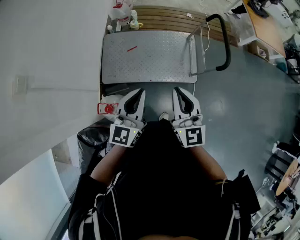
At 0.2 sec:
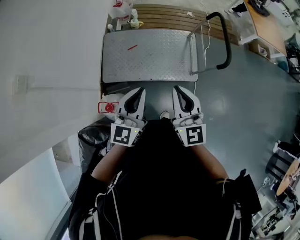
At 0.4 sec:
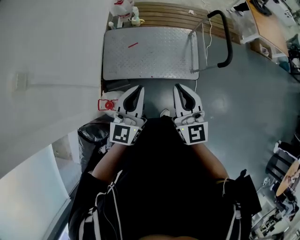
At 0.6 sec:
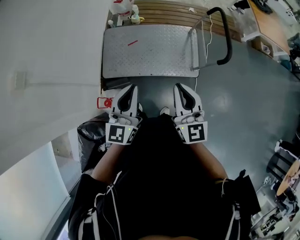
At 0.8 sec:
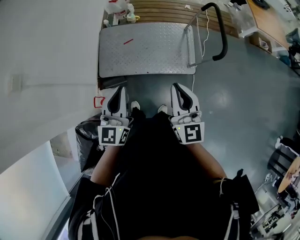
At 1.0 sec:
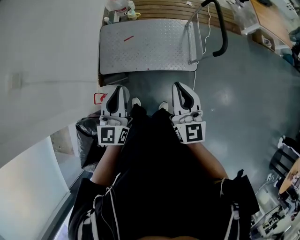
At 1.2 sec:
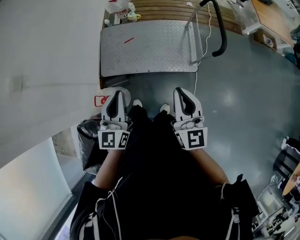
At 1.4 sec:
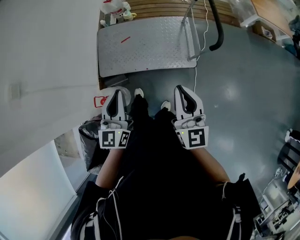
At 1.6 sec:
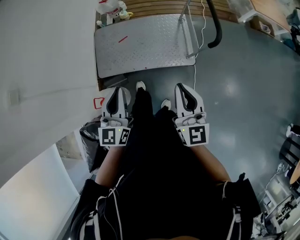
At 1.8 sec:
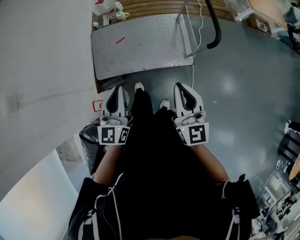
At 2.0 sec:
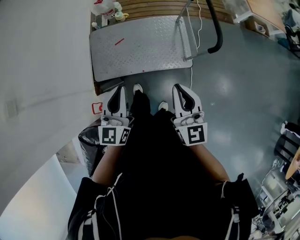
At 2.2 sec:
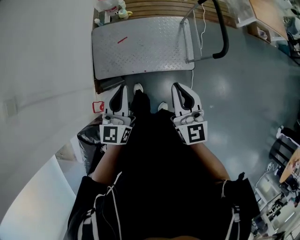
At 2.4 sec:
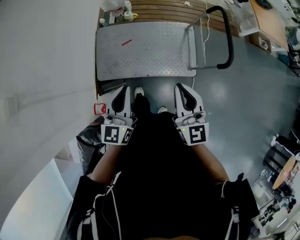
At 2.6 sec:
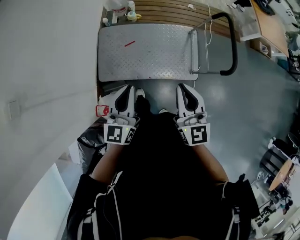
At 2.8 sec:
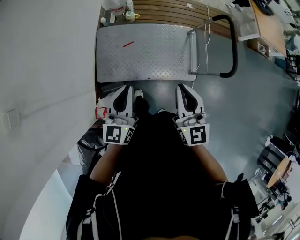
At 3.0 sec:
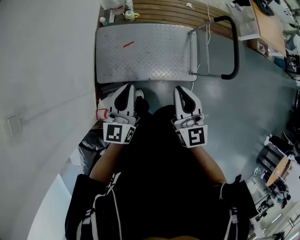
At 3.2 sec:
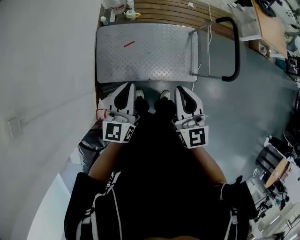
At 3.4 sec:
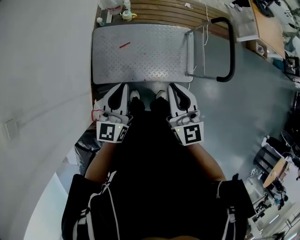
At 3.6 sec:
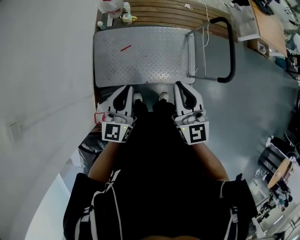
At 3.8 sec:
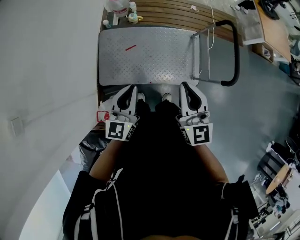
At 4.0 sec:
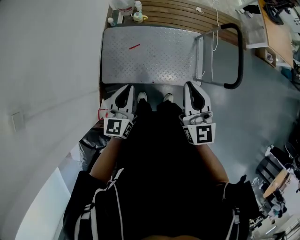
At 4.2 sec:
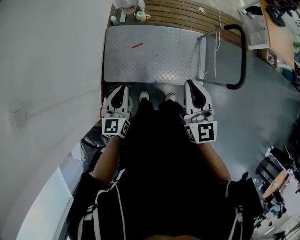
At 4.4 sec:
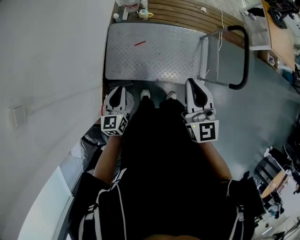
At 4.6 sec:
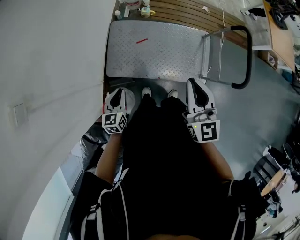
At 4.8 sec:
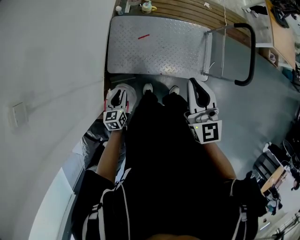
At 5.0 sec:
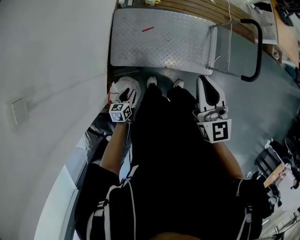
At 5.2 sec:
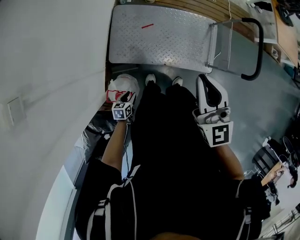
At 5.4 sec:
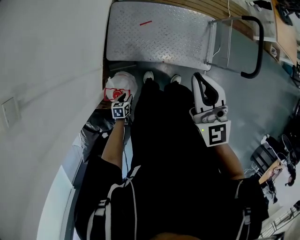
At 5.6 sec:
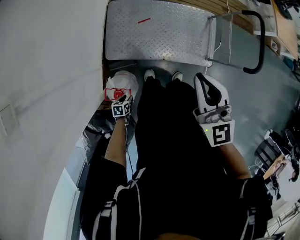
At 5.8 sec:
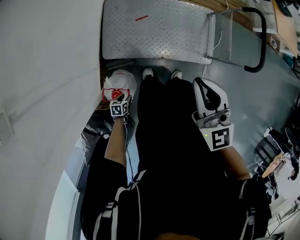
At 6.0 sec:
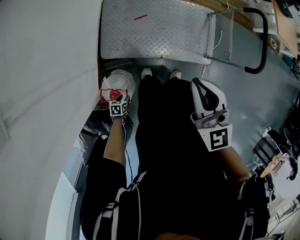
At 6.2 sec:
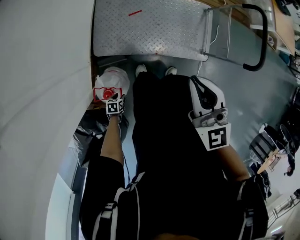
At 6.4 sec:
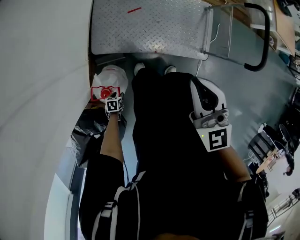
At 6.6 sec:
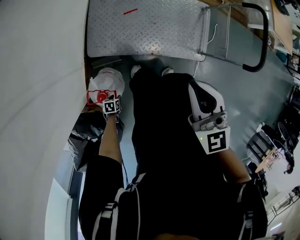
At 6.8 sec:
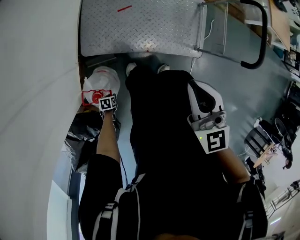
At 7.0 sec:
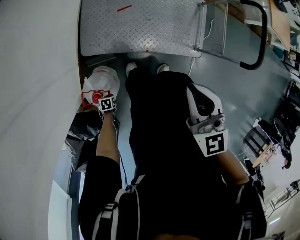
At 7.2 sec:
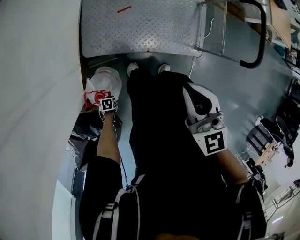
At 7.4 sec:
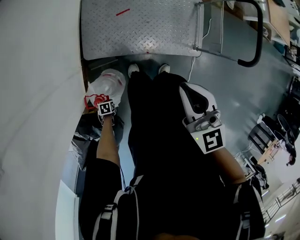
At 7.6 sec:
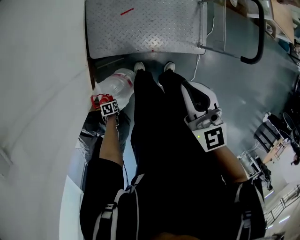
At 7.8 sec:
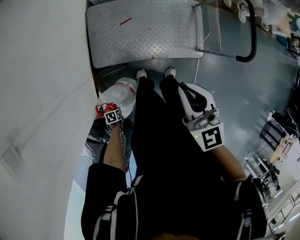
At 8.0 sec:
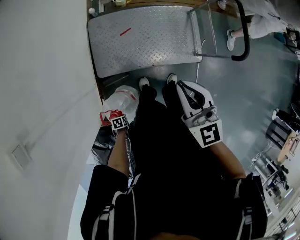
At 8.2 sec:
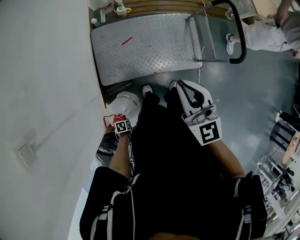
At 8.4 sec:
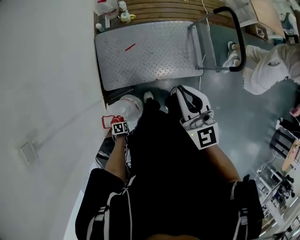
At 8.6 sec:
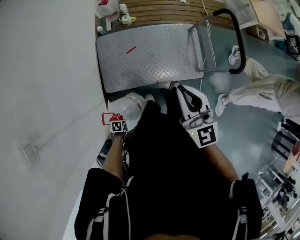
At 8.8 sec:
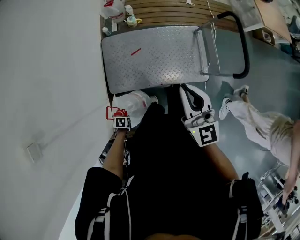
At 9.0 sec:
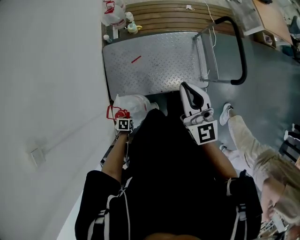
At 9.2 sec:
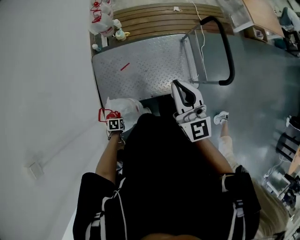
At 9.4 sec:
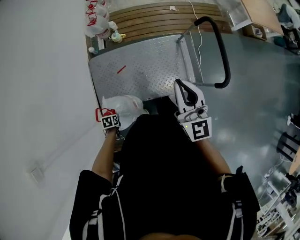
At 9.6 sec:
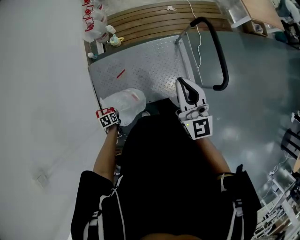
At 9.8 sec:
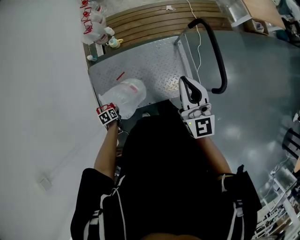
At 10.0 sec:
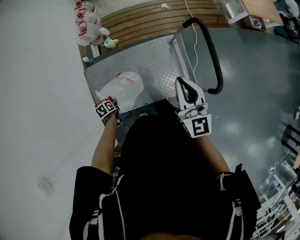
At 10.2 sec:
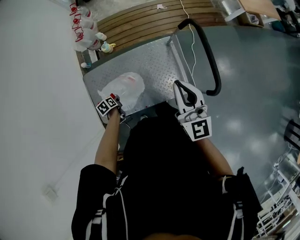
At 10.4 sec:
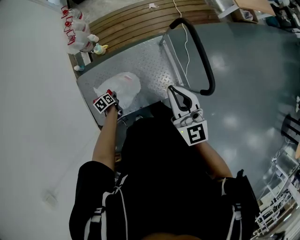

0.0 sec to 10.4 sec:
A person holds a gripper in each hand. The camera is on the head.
0.0 sec to 1.4 sec: The left gripper moves roughly 5 cm; the right gripper is displaced to the right and backward by roughly 15 cm.
1.4 sec to 3.0 sec: The grippers both shift forward and to the left by some 25 cm.
3.0 sec to 4.4 sec: The left gripper travels downward and to the left by about 15 cm; the right gripper is displaced forward by roughly 5 cm.
4.4 sec to 6.0 sec: The right gripper travels to the left and backward by approximately 10 cm. The left gripper is displaced downward and backward by some 50 cm, tips its fingers downward by some 40 degrees, and opens up.
6.0 sec to 7.4 sec: The two grippers go approximately 5 cm downward. The left gripper closes up.
7.4 sec to 9.0 sec: The right gripper shifts by some 15 cm, and rotates some 20 degrees. The left gripper moves some 25 cm.
9.0 sec to 10.4 sec: The left gripper ends up approximately 40 cm from where it was, and changes its angle by approximately 30 degrees, while the right gripper changes place by approximately 25 cm.

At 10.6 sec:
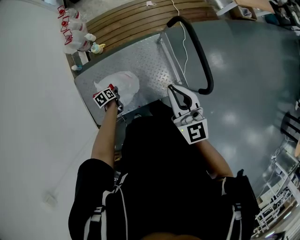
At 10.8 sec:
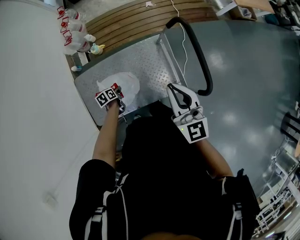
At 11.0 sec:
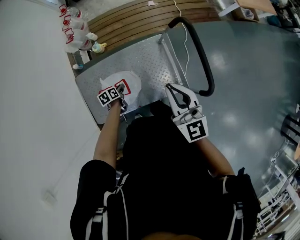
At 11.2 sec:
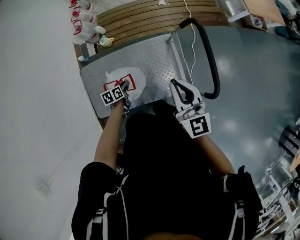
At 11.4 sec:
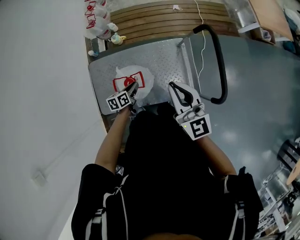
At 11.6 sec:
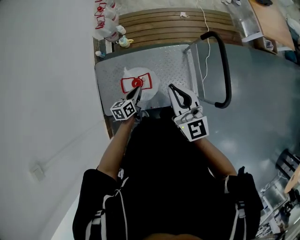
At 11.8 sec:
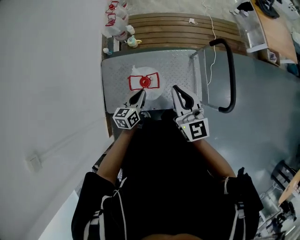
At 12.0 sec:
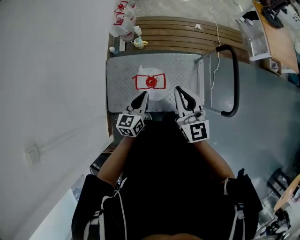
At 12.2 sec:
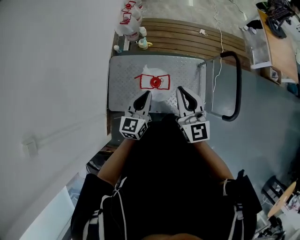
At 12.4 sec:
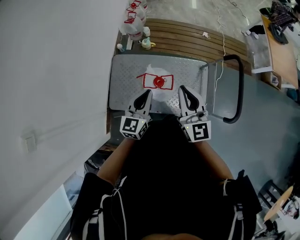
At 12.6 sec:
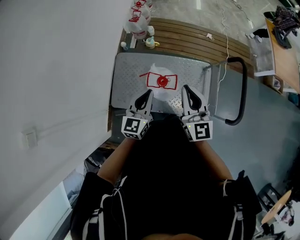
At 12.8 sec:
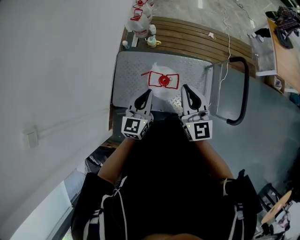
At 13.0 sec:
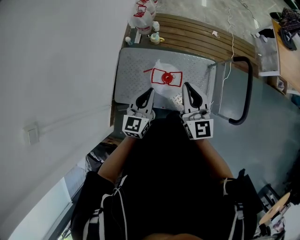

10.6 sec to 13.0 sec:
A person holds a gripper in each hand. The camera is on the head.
10.6 sec to 11.8 sec: The left gripper is displaced upward by some 25 cm, and angles its fingers upward, by some 40 degrees; the right gripper moves to the left, roughly 15 cm.
11.8 sec to 13.0 sec: The right gripper goes approximately 10 cm to the left; the left gripper travels upward and to the left by approximately 15 cm, and turns by about 30 degrees.

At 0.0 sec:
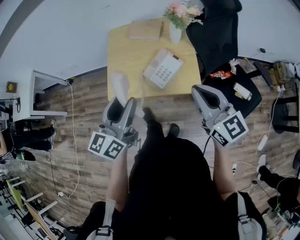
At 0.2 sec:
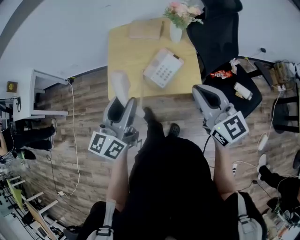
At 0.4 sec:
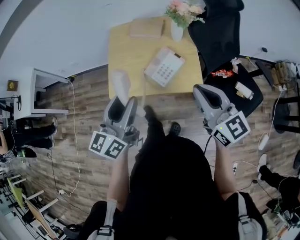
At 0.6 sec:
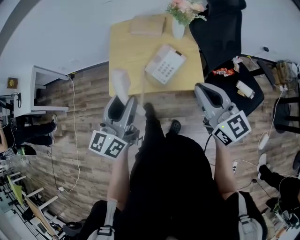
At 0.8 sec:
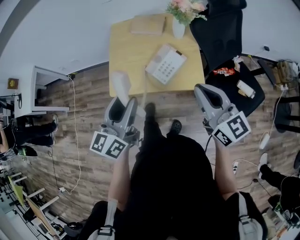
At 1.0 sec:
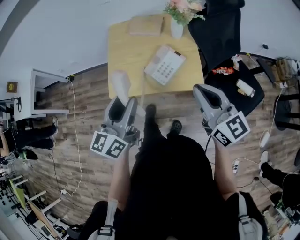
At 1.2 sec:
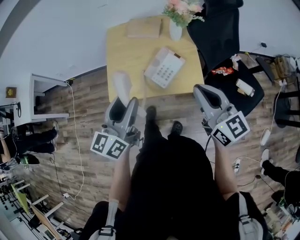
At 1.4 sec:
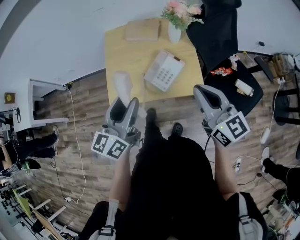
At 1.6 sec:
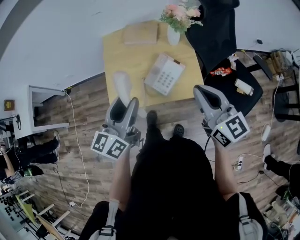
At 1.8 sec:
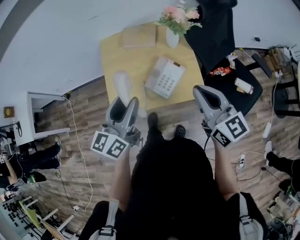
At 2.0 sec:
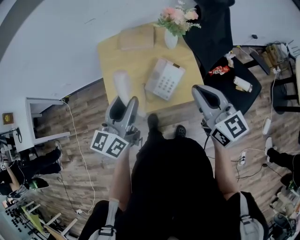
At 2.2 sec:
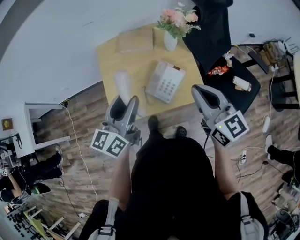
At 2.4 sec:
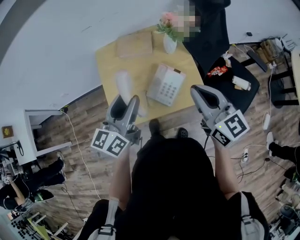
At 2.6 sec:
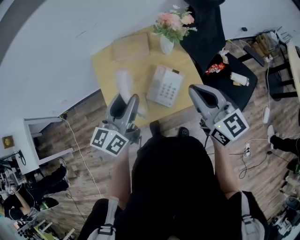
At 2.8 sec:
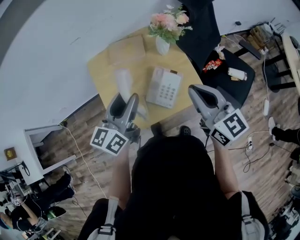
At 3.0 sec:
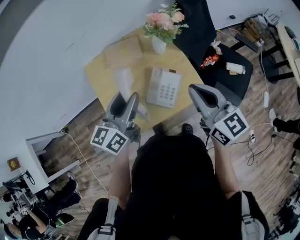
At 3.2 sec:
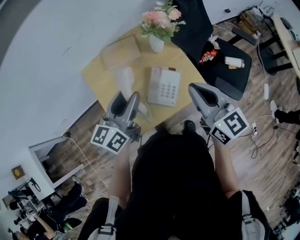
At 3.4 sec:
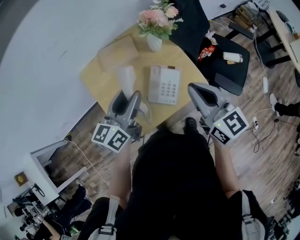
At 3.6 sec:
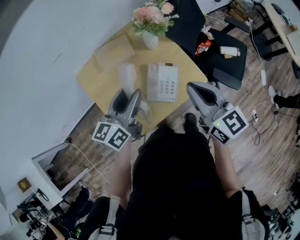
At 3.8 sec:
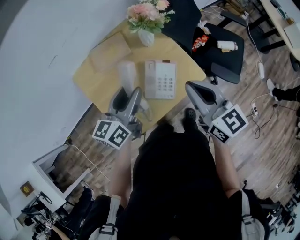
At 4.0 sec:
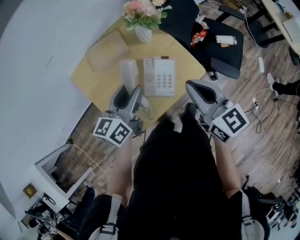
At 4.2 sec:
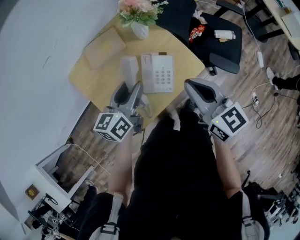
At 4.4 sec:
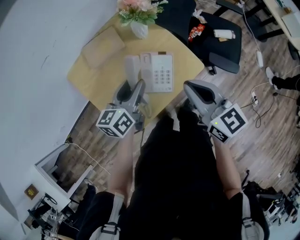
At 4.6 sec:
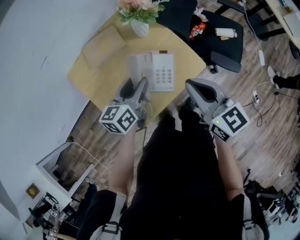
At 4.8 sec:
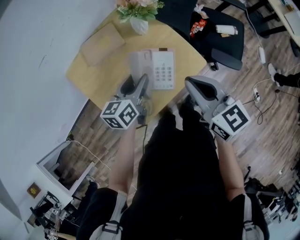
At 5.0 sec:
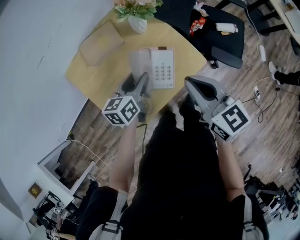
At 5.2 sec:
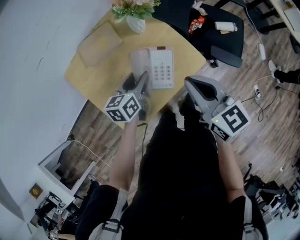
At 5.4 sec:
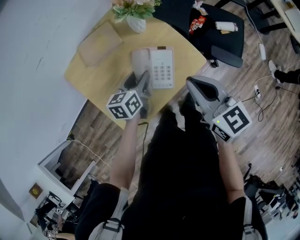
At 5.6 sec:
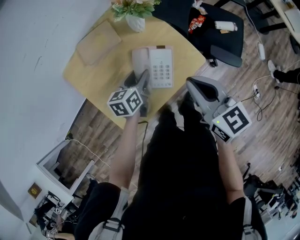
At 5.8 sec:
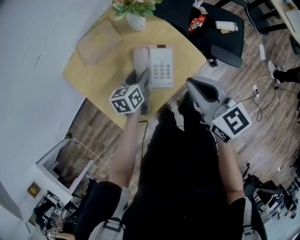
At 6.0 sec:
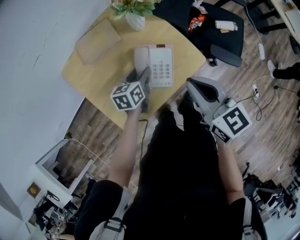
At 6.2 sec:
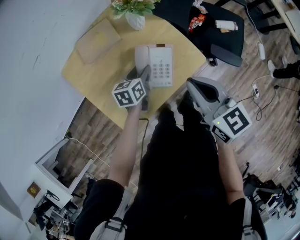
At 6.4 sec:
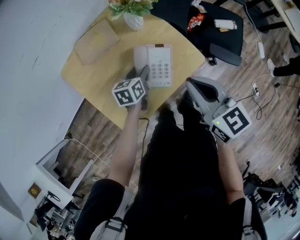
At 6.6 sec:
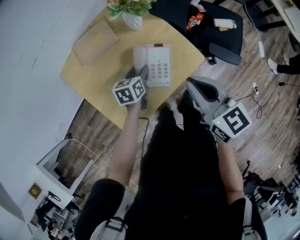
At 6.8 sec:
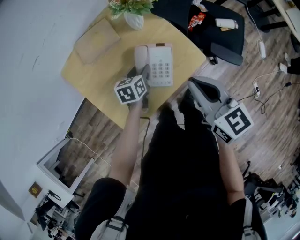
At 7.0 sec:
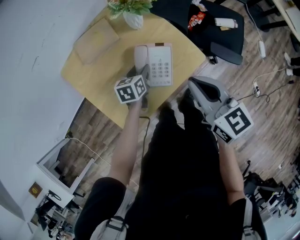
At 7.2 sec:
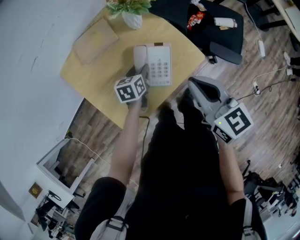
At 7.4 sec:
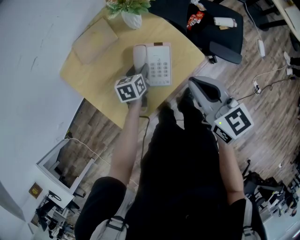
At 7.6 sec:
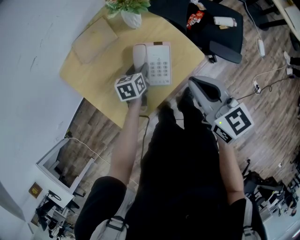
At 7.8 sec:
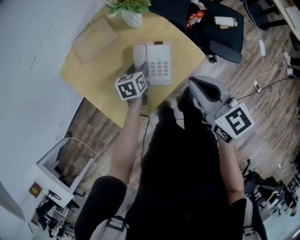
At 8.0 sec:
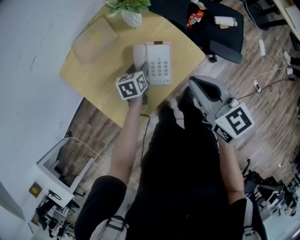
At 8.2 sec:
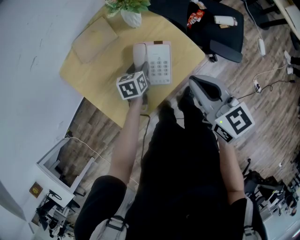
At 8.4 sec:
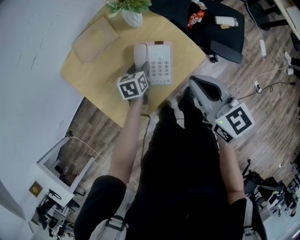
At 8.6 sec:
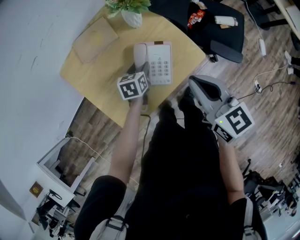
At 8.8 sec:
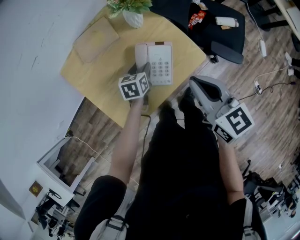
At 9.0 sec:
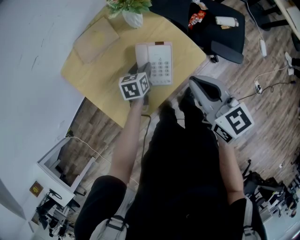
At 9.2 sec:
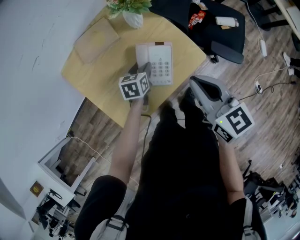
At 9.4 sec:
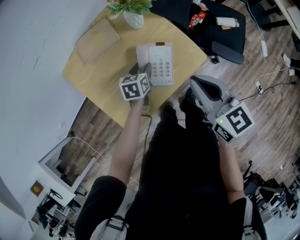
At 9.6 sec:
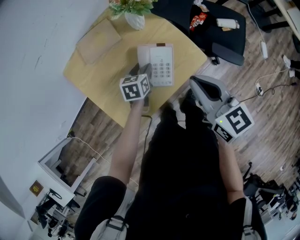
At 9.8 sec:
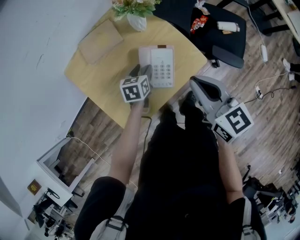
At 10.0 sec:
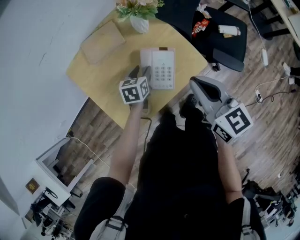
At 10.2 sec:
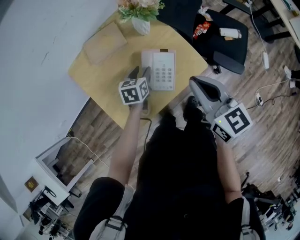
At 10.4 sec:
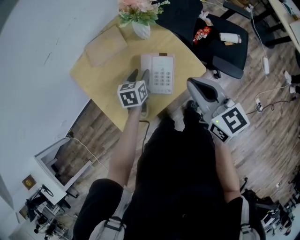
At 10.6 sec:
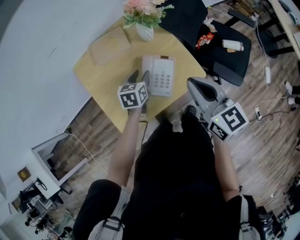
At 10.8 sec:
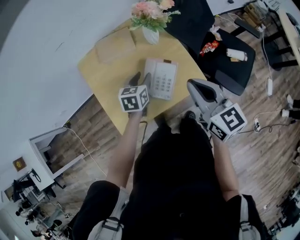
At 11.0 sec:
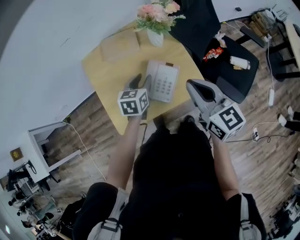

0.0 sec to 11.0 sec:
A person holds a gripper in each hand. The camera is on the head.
0.0 sec to 1.6 sec: The two grippers go roughly 5 cm forward.
1.6 sec to 3.2 sec: The right gripper shifts roughly 10 cm forward and to the left, and rotates roughly 20 degrees. The left gripper is displaced forward by about 15 cm, and rotates about 30 degrees.
3.2 sec to 4.8 sec: The left gripper goes some 15 cm downward, and rotates some 20 degrees. Meanwhile the right gripper shifts some 5 cm downward.
4.8 sec to 6.2 sec: The left gripper moves downward, some 10 cm.
6.2 sec to 7.8 sec: The grippers move only a little.
7.8 sec to 9.4 sec: Neither gripper changes place.
9.4 sec to 11.0 sec: The right gripper ends up roughly 5 cm from where it was; the left gripper is displaced upward by approximately 10 cm.
